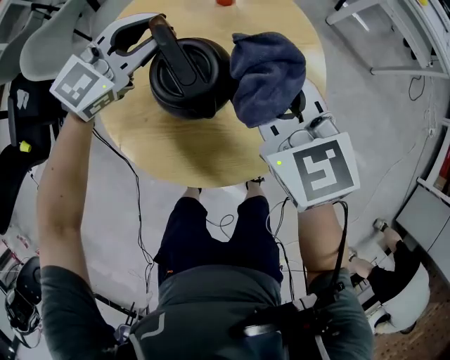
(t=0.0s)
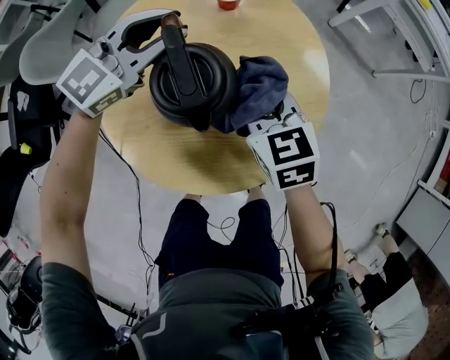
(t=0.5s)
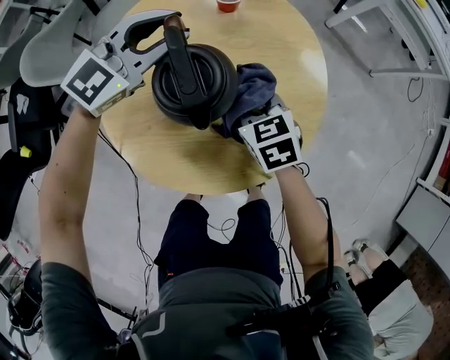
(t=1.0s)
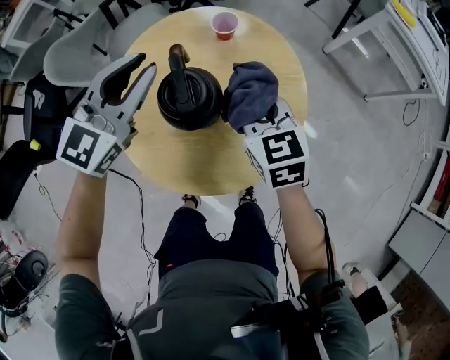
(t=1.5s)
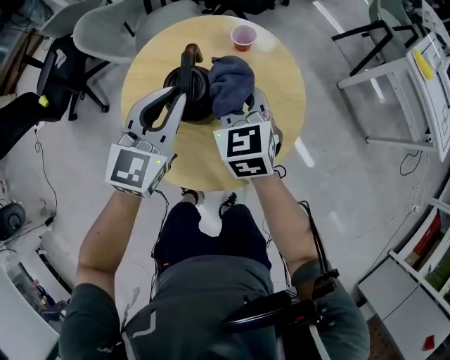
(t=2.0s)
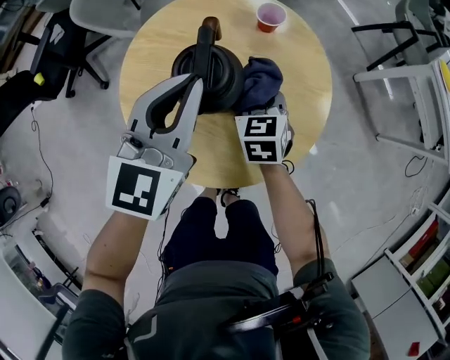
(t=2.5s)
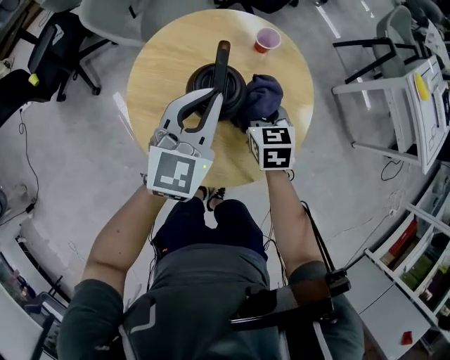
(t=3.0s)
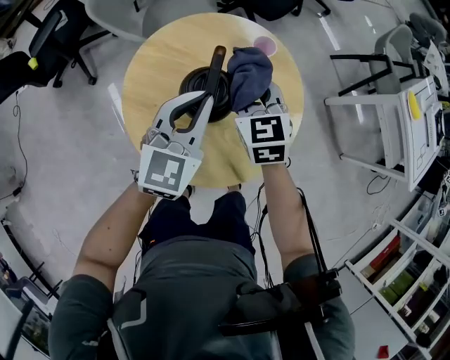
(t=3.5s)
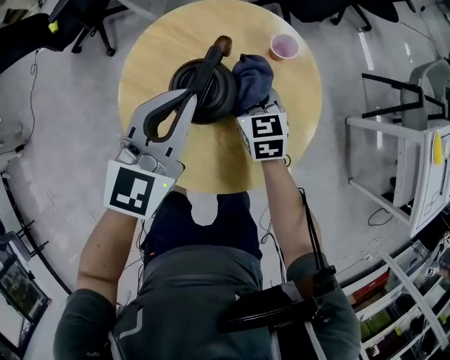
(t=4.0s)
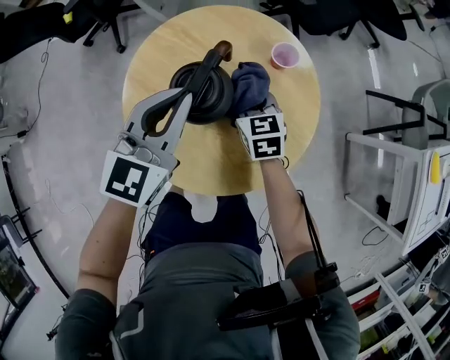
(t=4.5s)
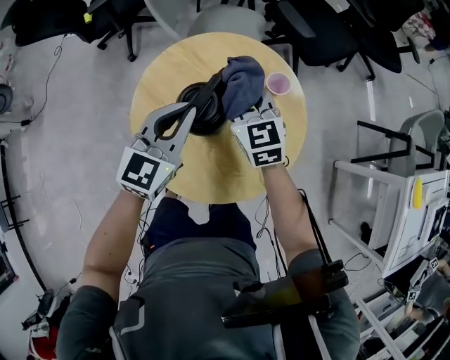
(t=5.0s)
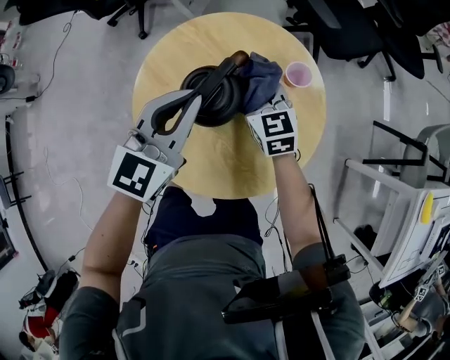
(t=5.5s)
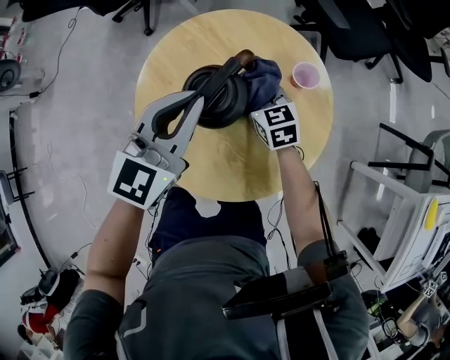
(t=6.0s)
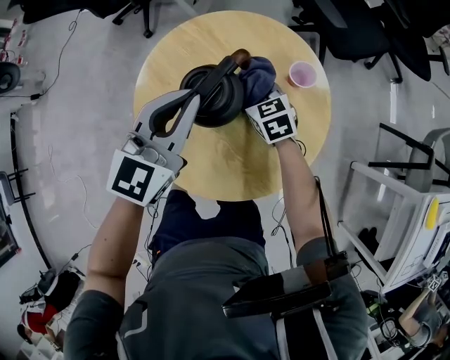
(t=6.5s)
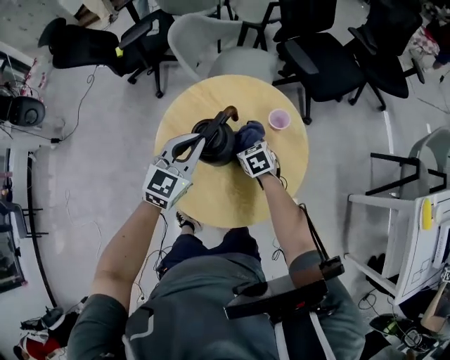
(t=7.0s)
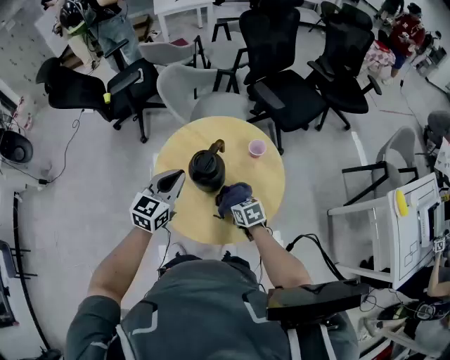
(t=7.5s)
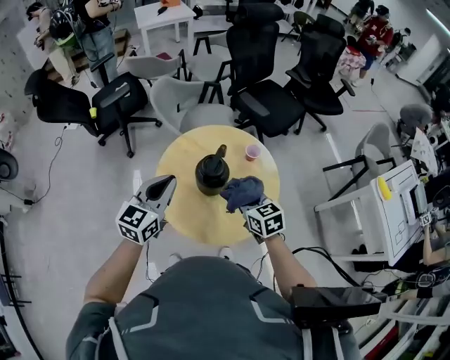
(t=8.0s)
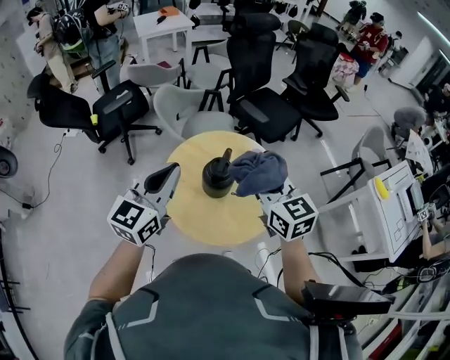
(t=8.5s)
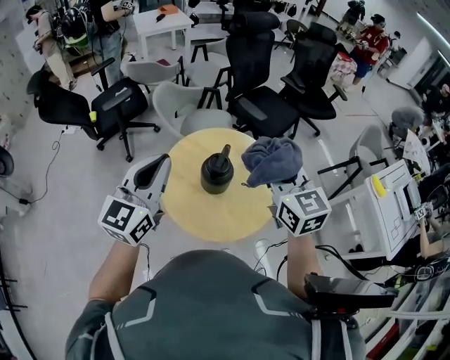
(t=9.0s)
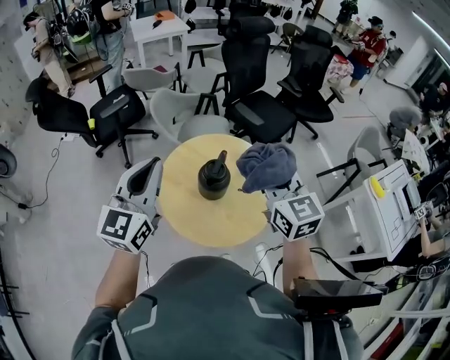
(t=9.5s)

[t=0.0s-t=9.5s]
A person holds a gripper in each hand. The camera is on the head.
t=0.0s to t=2.0s: The left gripper ends up some 15 cm from where it was, and rotates about 40 degrees, while the right gripper goes downward and returns, some 20 cm each way.
t=2.0s to t=4.0s: The right gripper goes up and down, some 15 cm each way, reversing 2 times, and turns by approximately 20 degrees.
t=4.0s to t=5.5s: The right gripper travels upward and back again, approximately 10 cm each way, and swivels some 20 degrees.
t=5.5s to t=7.5s: The right gripper heads backward, covering about 15 cm, and rotates roughly 30 degrees, while the left gripper changes place by roughly 10 cm.
t=7.5s to t=9.5s: The right gripper heads upward, covering roughly 40 cm, and tilts its fingers roughly 40 degrees upward, while the left gripper goes about 25 cm upward and to the left, and rotates roughly 20 degrees.

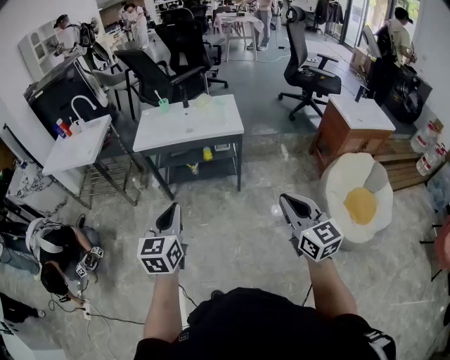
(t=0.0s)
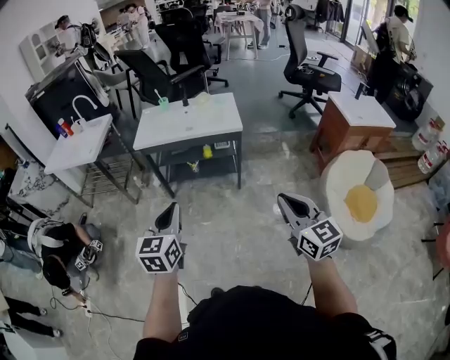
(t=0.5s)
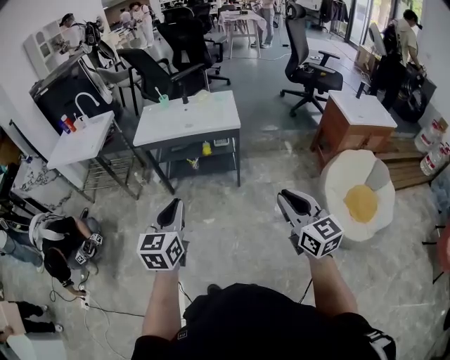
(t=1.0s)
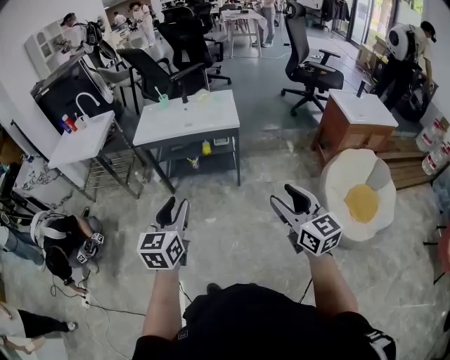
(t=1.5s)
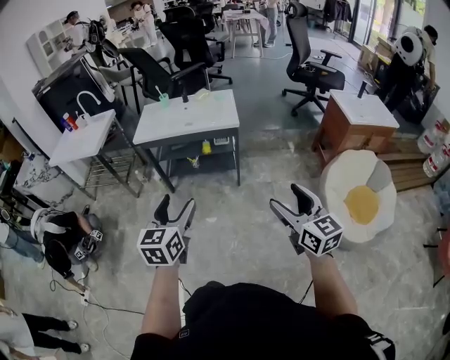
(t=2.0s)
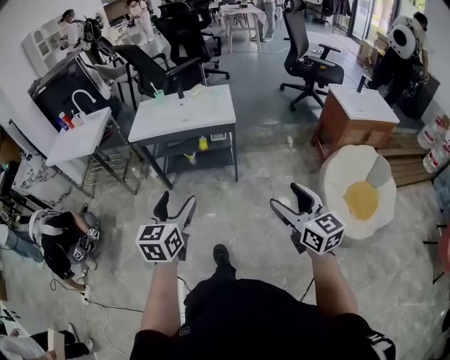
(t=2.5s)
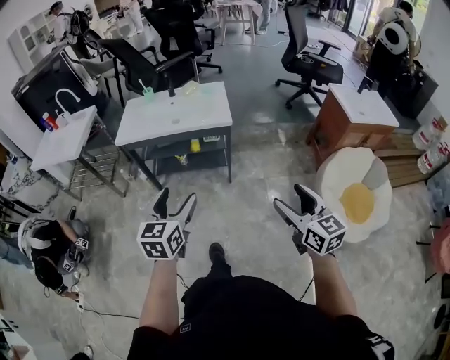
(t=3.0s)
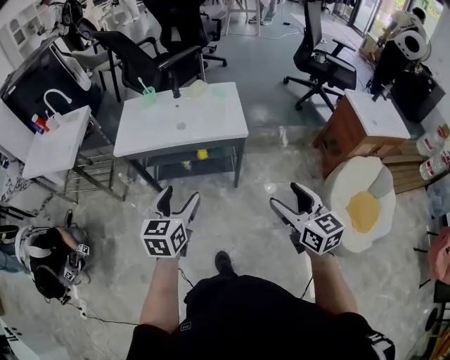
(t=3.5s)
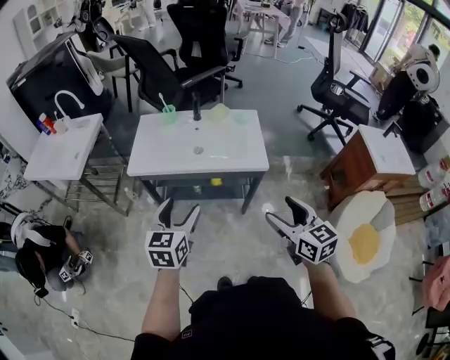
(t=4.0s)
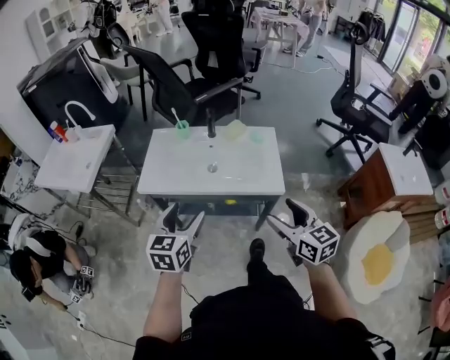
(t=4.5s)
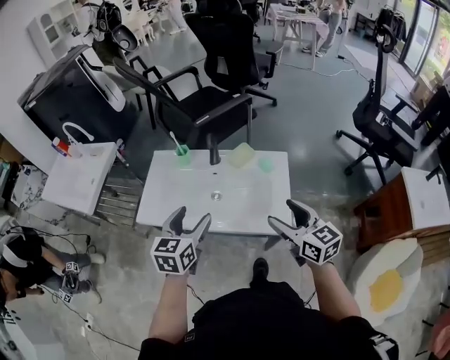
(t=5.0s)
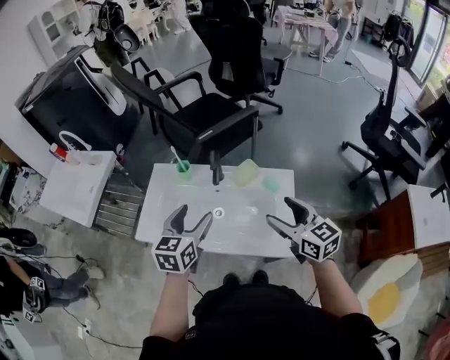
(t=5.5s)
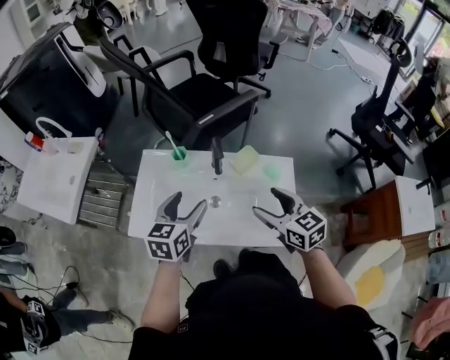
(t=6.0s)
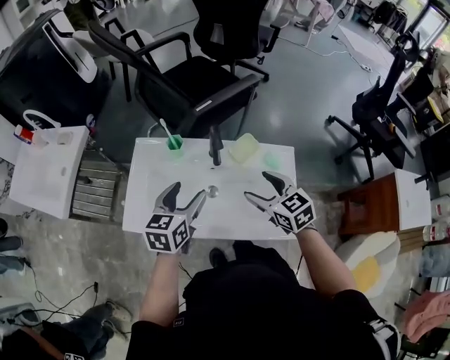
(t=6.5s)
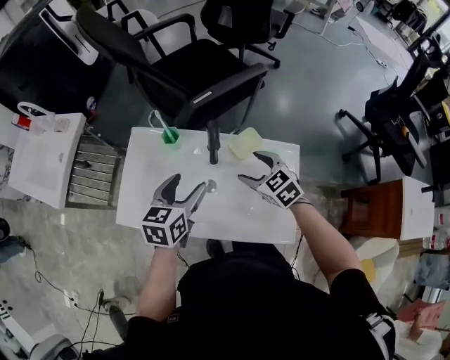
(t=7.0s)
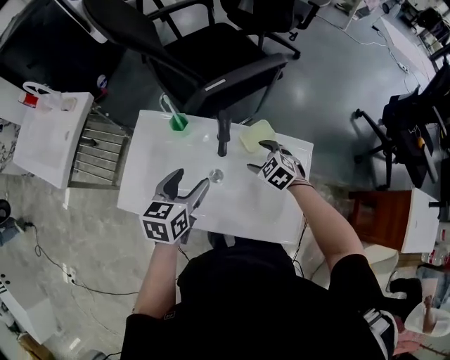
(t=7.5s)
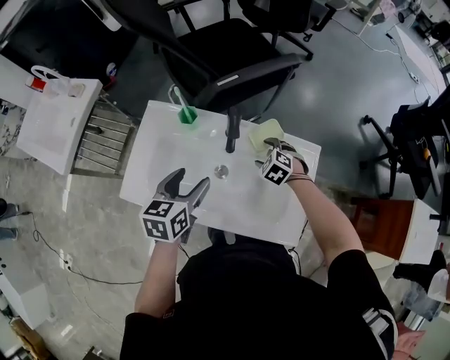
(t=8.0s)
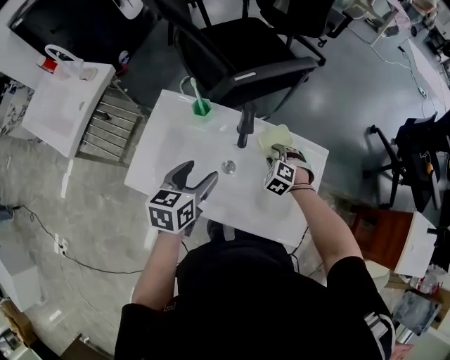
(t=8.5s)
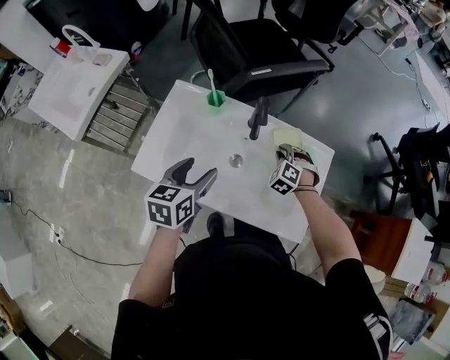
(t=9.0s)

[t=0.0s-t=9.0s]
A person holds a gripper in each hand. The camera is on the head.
t=0.0s to t=2.0s: Both grippers travel together to the right, about 5 cm. The left gripper opens its fingers; the right gripper opens.
t=2.0s to t=4.5s: The two grippers travel together, forward, about 50 cm.
t=4.5s to t=7.0s: The grippers both shift forward by some 40 cm. The right gripper rotates roughly 40 degrees.
t=7.0s to t=9.0s: The left gripper shifts some 5 cm to the left and backward. The right gripper travels downward by approximately 10 cm, turns by approximately 50 degrees, and closes.

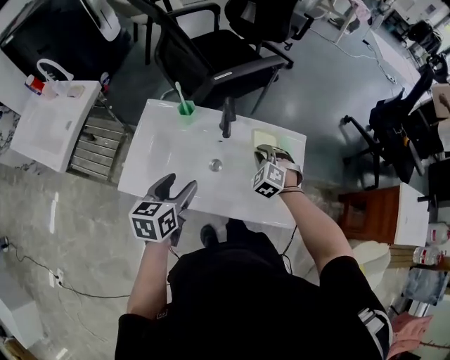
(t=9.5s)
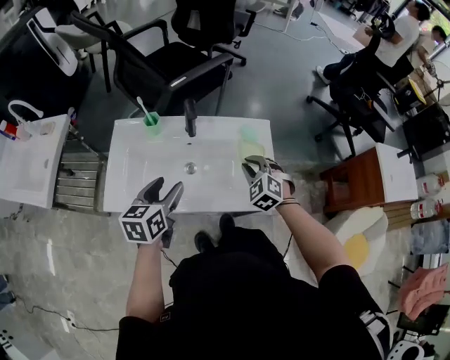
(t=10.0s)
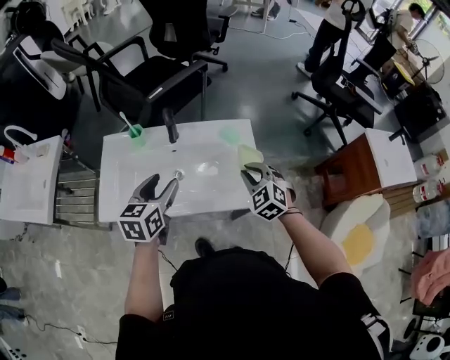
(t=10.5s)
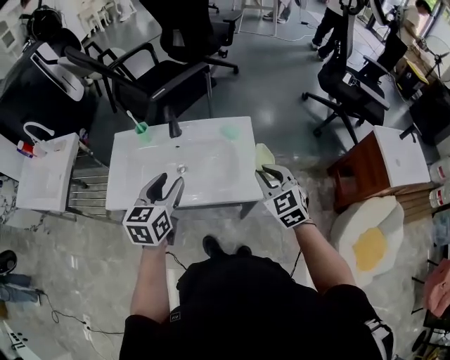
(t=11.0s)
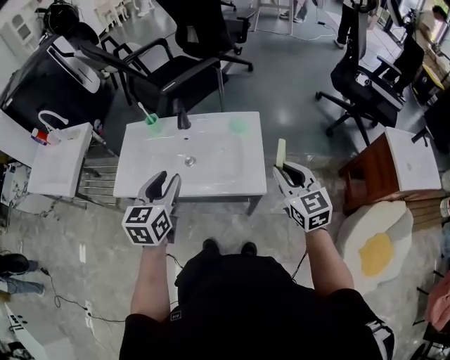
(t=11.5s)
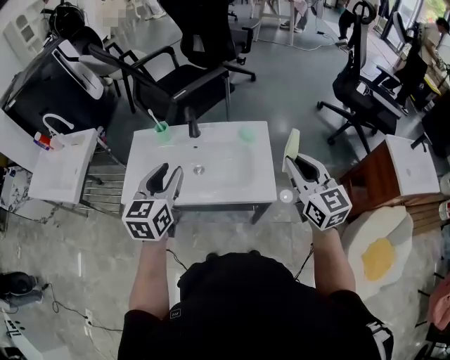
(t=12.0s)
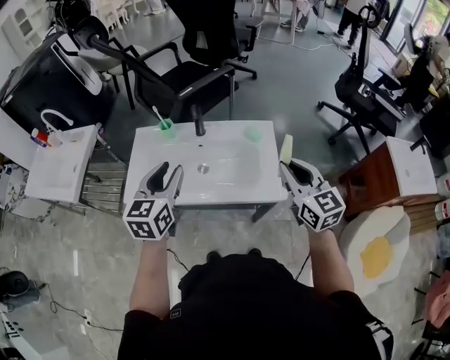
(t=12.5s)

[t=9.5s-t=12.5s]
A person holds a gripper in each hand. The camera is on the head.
t=9.5s to t=11.0s: The right gripper is displaced to the right, backward and upward by approximately 30 cm, and swivels approximately 40 degrees; the left gripper is displaced to the right and upward by roughly 15 cm.
t=11.0s to t=12.5s: The left gripper moves to the left and upward, about 10 cm, while the right gripper heads upward, covering roughly 10 cm, and changes its angle by some 30 degrees.

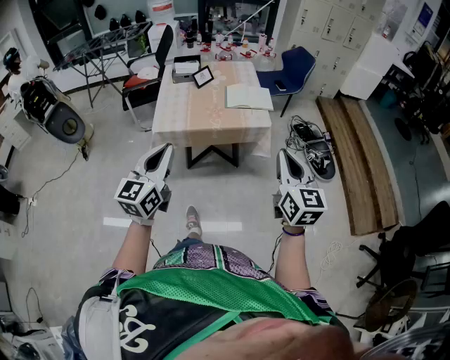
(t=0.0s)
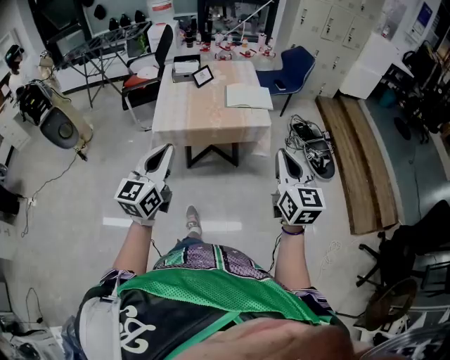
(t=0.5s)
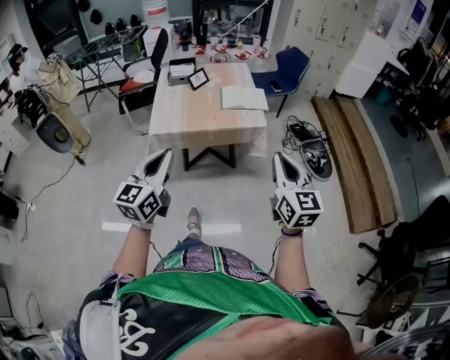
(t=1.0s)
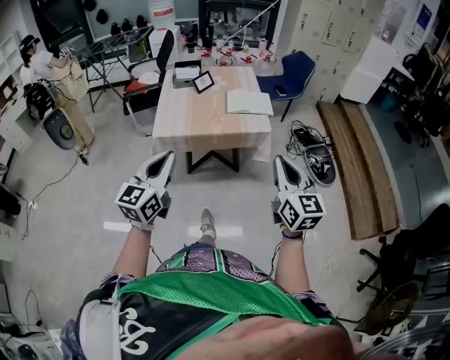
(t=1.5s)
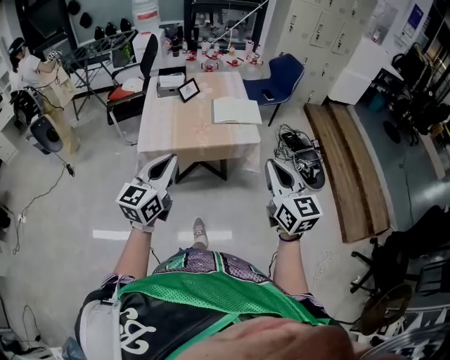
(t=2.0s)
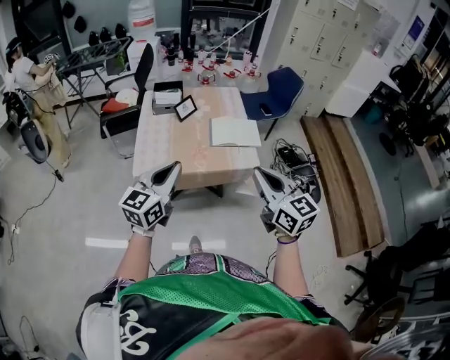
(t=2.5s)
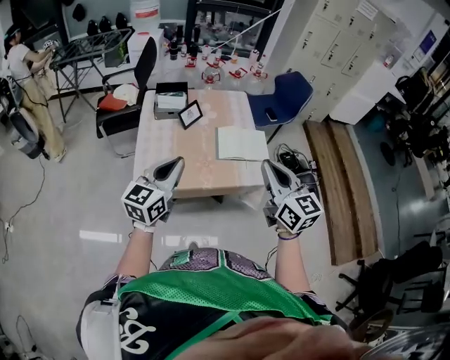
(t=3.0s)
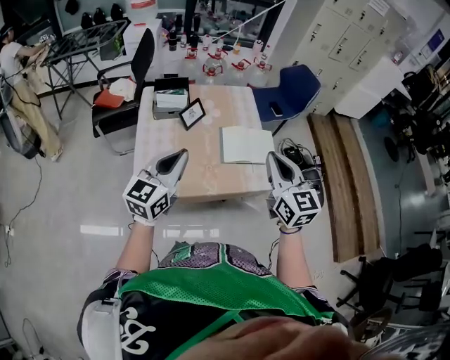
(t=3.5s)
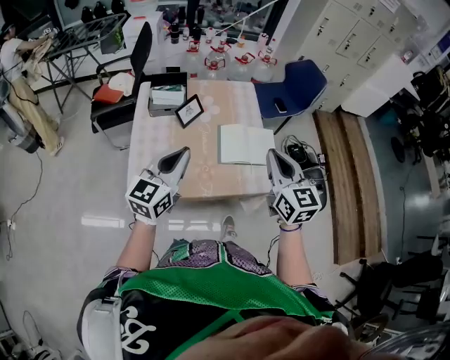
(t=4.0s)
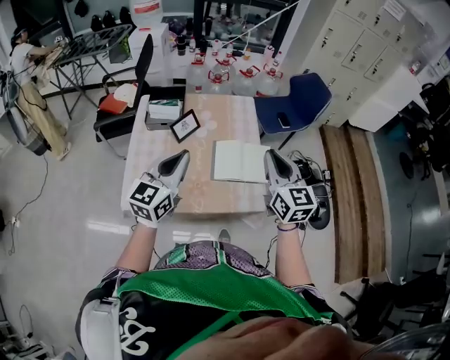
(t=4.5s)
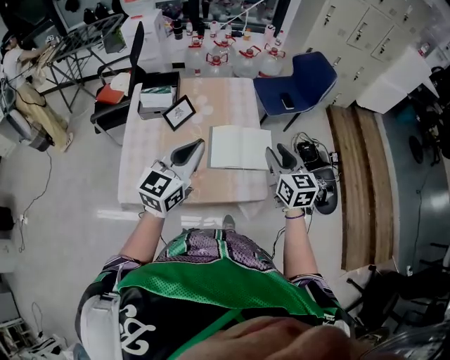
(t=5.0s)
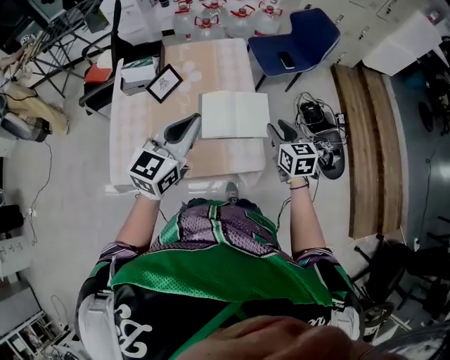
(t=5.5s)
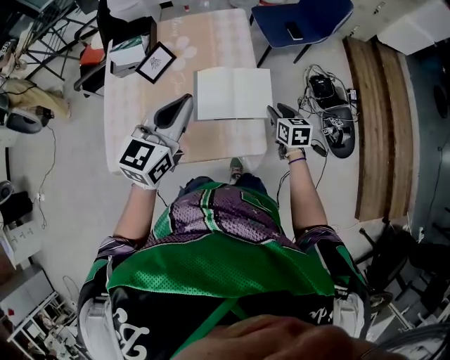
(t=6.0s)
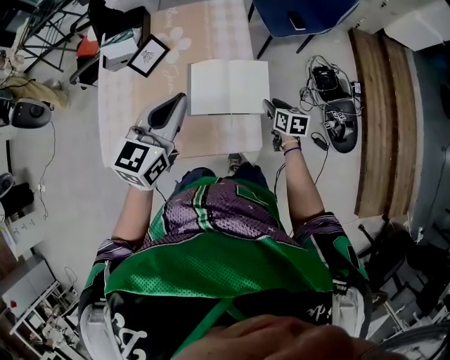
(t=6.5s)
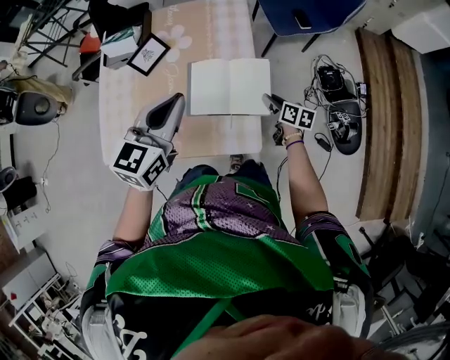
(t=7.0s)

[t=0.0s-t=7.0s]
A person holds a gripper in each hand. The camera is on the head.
t=0.0s to t=2.0s: Both grippers move forward, approximately 10 cm.
t=2.0s to t=3.5s: Both grippers move forward, roughly 35 cm.
t=3.5s to t=5.0s: The left gripper heads to the right and forward, covering roughly 20 cm; the right gripper shifts about 25 cm forward, to the right and downward, and opens.
t=5.0s to t=7.0s: The right gripper travels downward by roughly 35 cm, and turns by some 50 degrees, while the left gripper travels downward, forward and to the right by about 15 cm.
